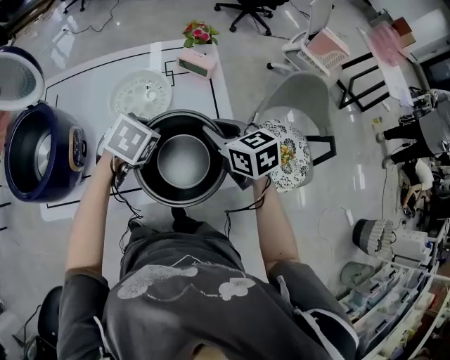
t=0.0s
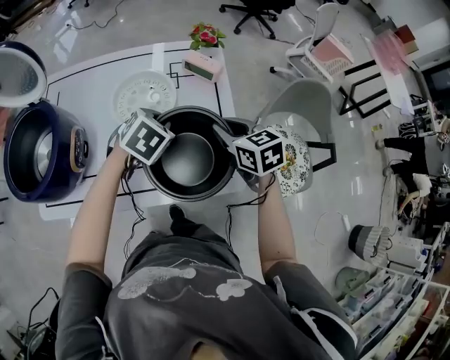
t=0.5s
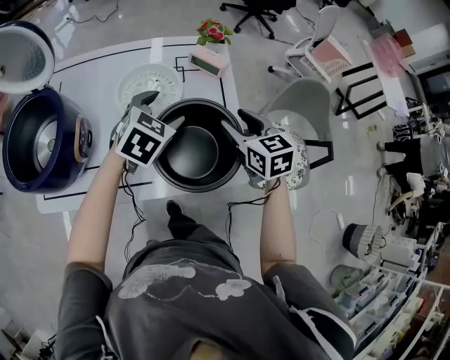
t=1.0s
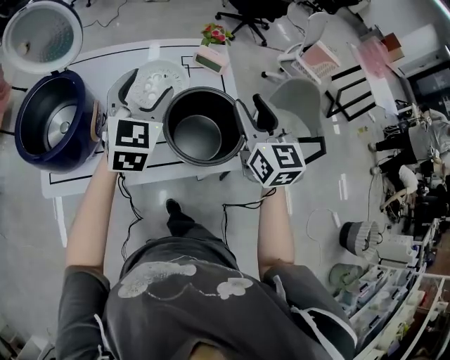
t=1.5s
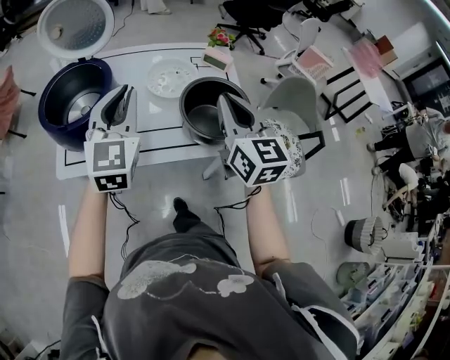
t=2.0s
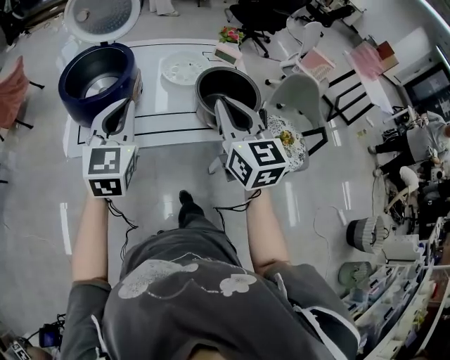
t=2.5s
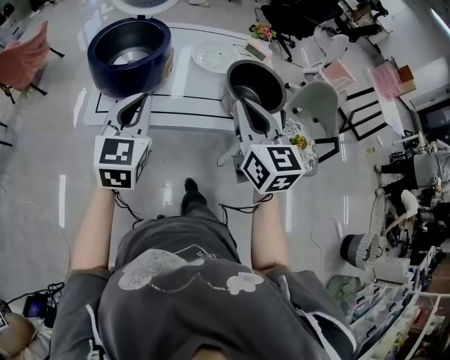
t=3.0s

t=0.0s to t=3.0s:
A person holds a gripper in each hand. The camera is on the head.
t=0.0s to t=1.5s: The right gripper goes approximately 15 cm upward, rotates some 40 degrees, and opens its fingers; the left gripper goes some 20 cm upward and to the left, tips its fingers upward by about 50 degrees, and opens up.
t=1.5s to t=3.0s: The right gripper heads to the left and backward, covering some 30 cm, and closes, while the left gripper shifts roughly 30 cm backward and to the left, and closes its fingers.

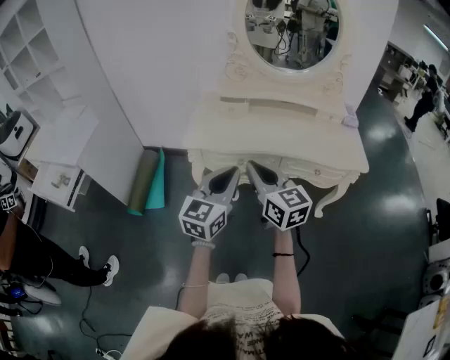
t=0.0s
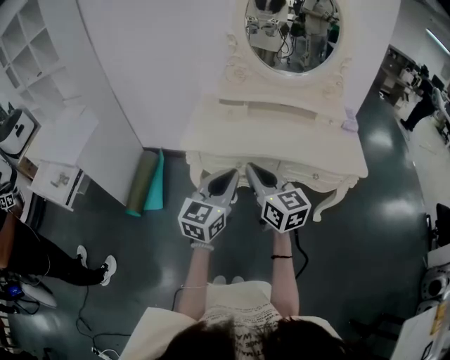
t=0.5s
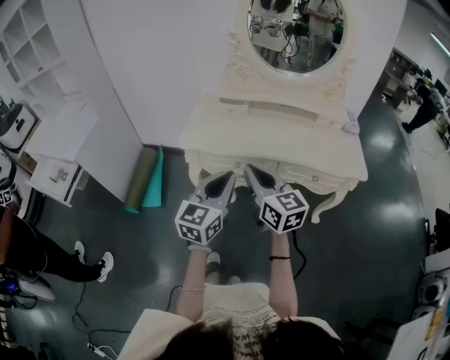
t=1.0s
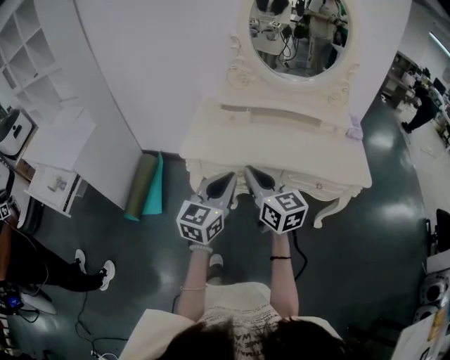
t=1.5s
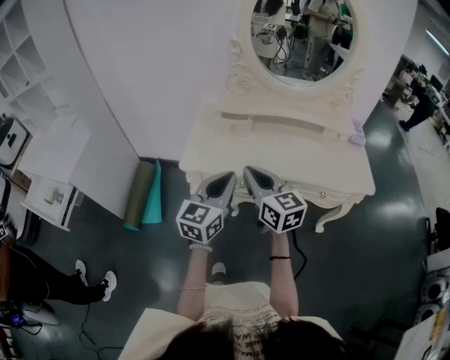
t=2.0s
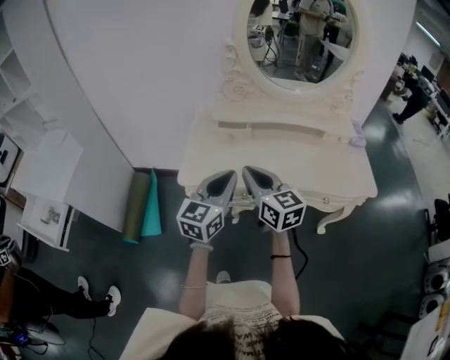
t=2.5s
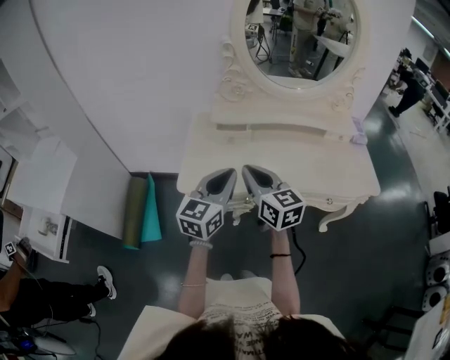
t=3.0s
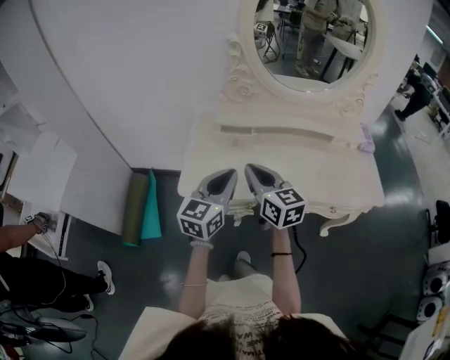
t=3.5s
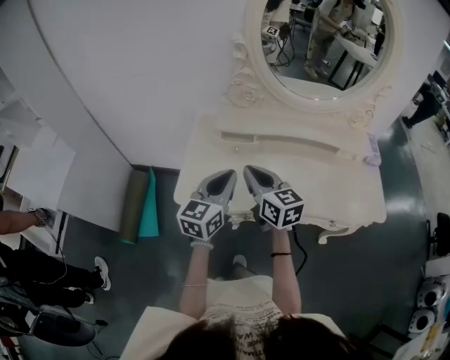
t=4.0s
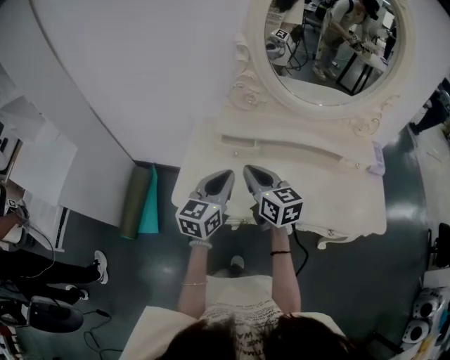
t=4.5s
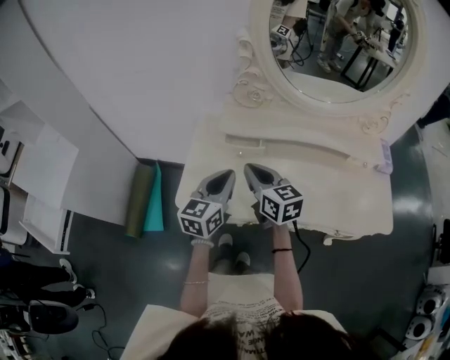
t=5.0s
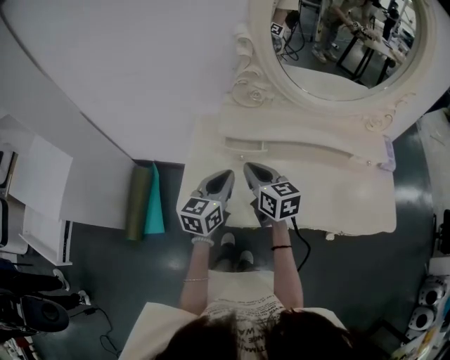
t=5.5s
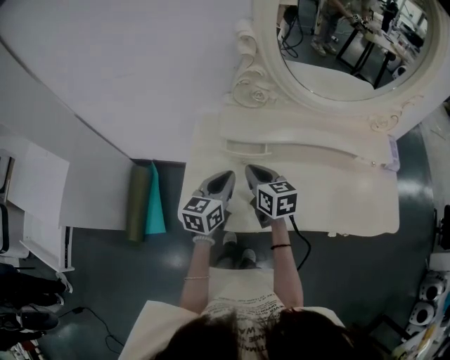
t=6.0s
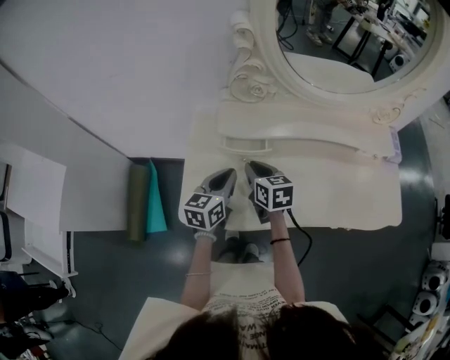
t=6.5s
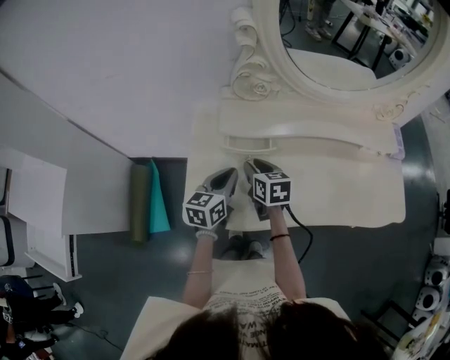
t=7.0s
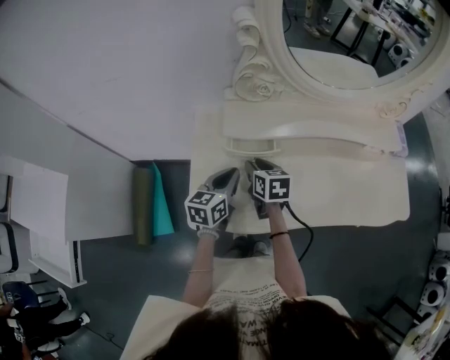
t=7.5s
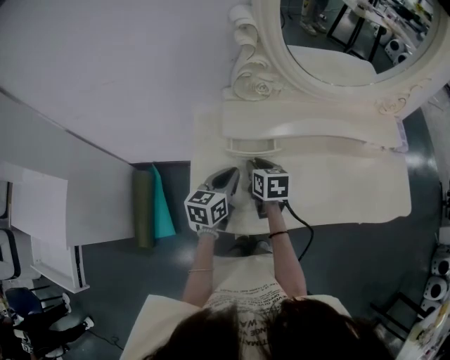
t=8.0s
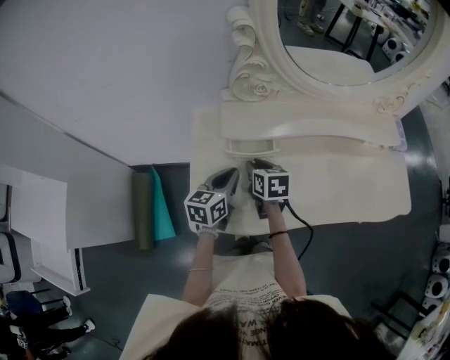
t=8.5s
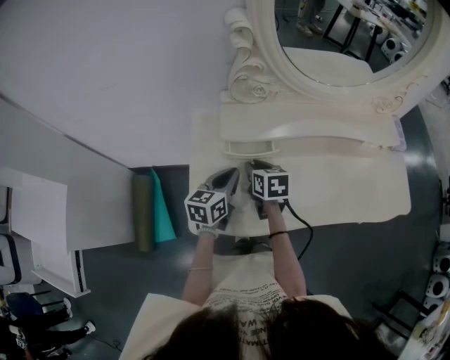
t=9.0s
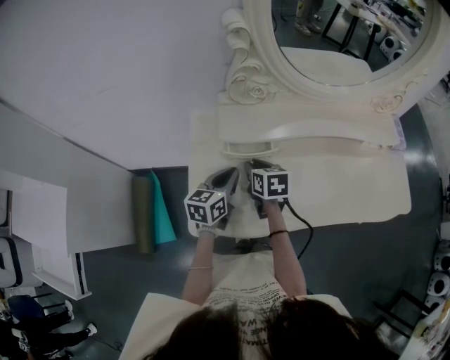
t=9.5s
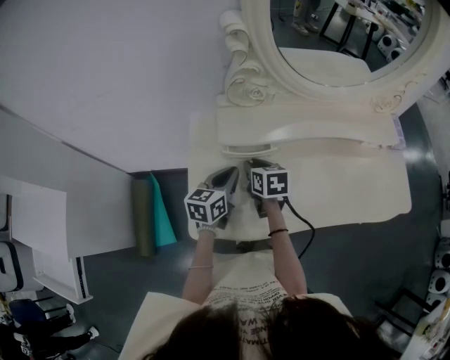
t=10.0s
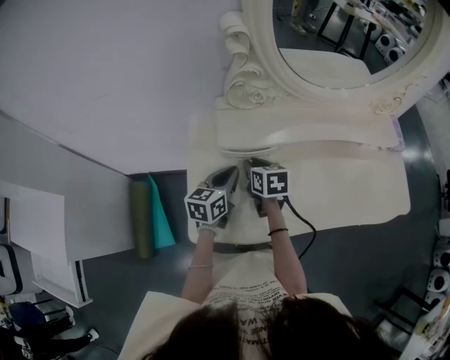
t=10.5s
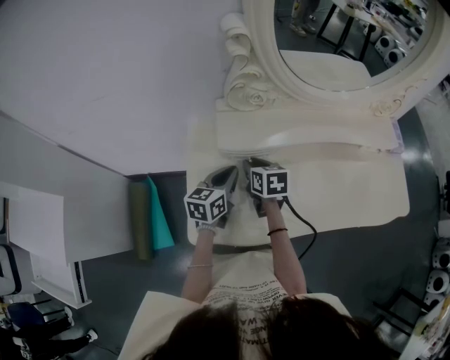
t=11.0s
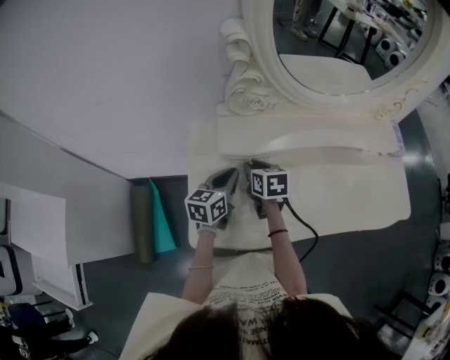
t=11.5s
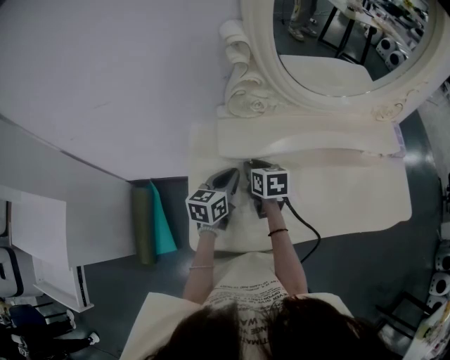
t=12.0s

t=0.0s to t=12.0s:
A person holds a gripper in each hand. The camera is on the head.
t=0.0s to t=2.0s: Both grippers move forward, about 10 cm.
t=2.0s to t=4.0s: Both grippers travel together forward, approximately 20 cm.
t=4.0s to t=6.0s: Both grippers travel together forward and downward, about 15 cm.
t=6.0s to t=8.0s: The two grippers go some 5 cm downward. The right gripper opens its fingers.
t=8.0s to t=12.0s: The grippers make only small movements.

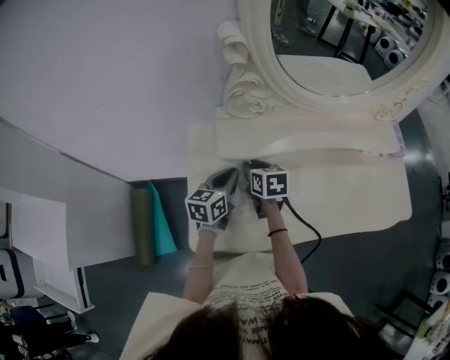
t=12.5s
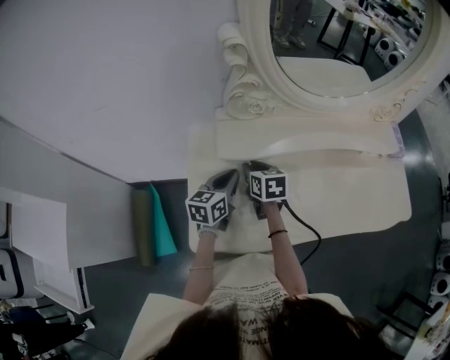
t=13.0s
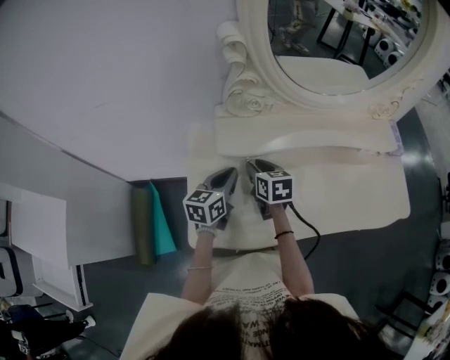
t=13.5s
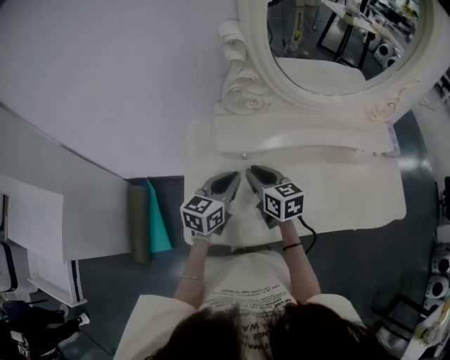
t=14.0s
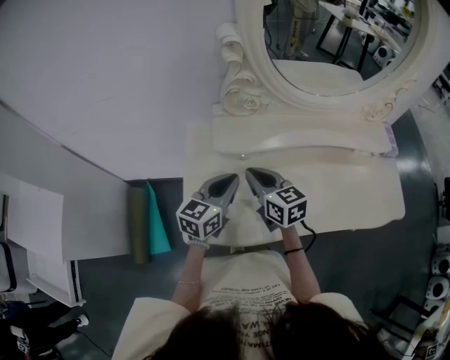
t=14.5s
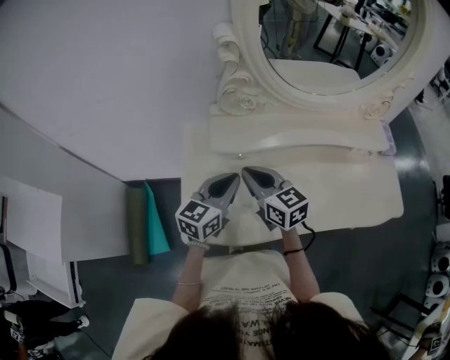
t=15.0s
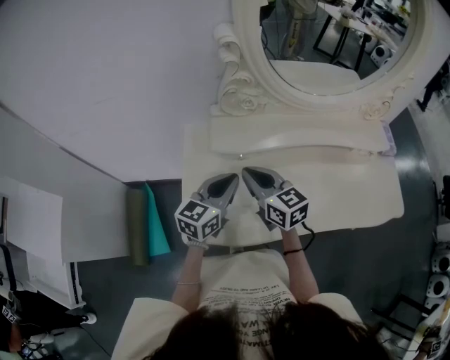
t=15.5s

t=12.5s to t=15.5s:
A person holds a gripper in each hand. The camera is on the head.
t=12.5s to t=14.0s: The right gripper moves upward and backward, some 10 cm; the left gripper ends up about 5 cm from where it was.
t=14.0s to t=15.5s: The right gripper moves upward, approximately 5 cm.

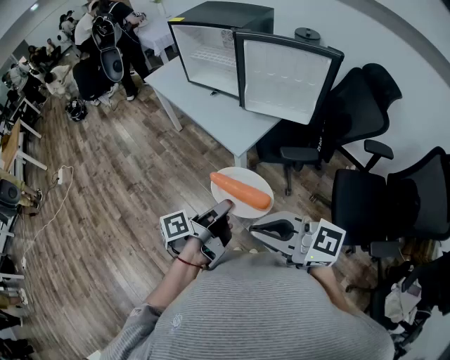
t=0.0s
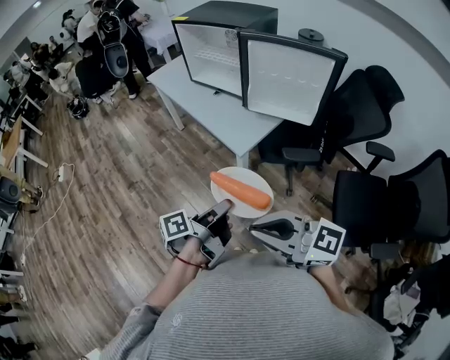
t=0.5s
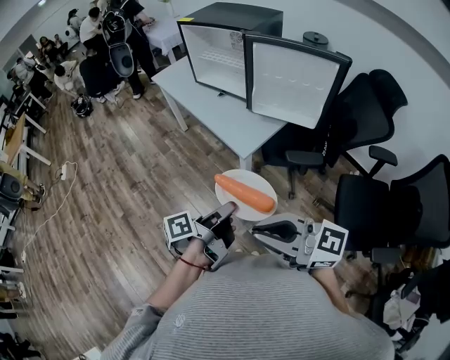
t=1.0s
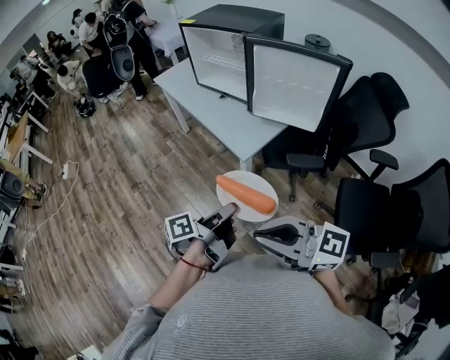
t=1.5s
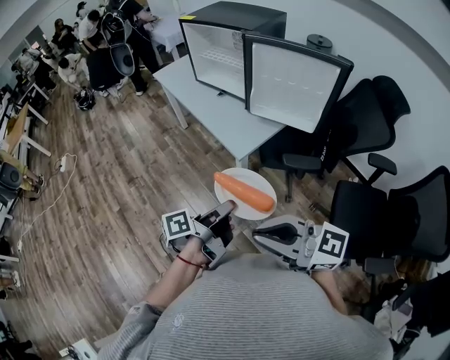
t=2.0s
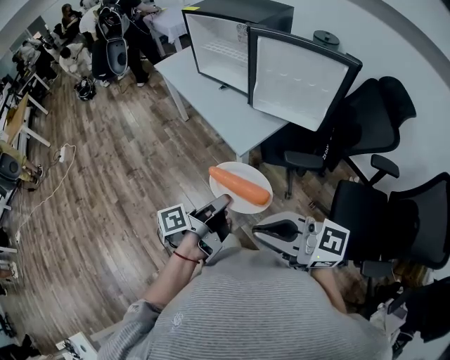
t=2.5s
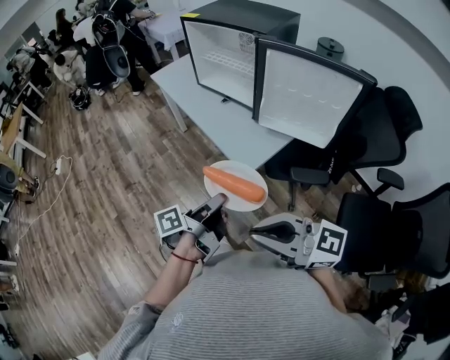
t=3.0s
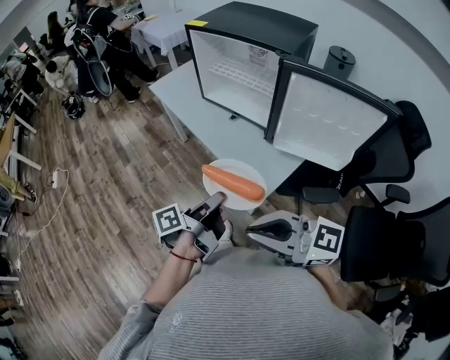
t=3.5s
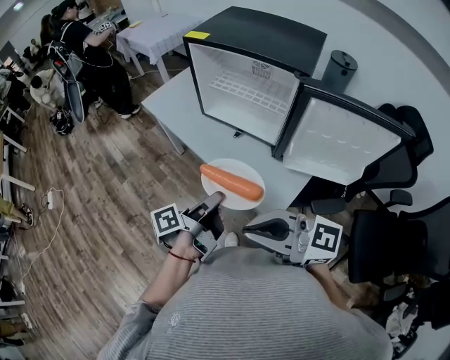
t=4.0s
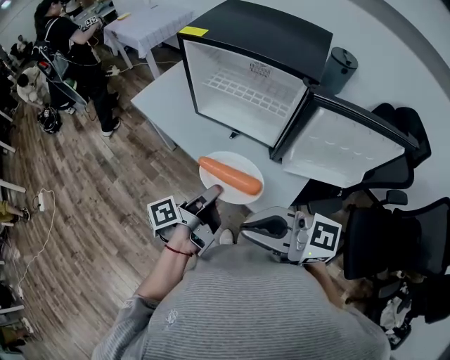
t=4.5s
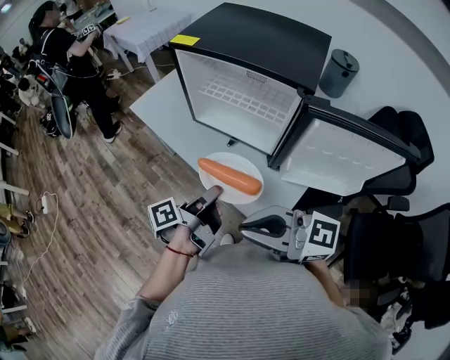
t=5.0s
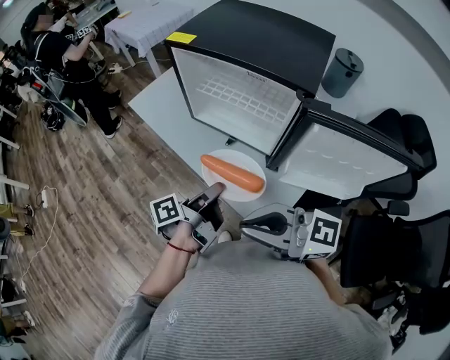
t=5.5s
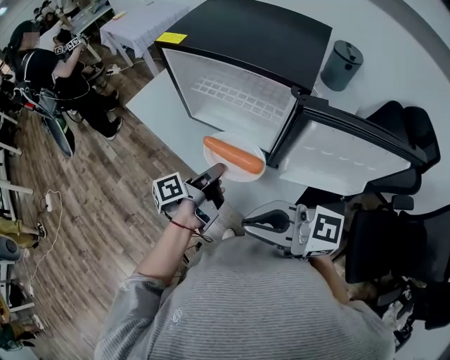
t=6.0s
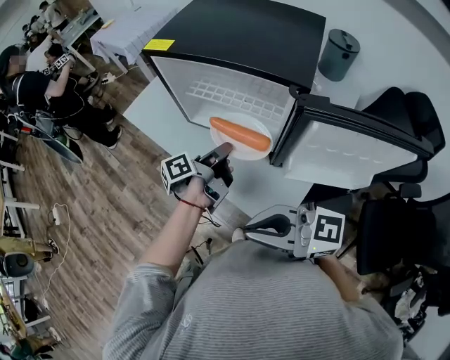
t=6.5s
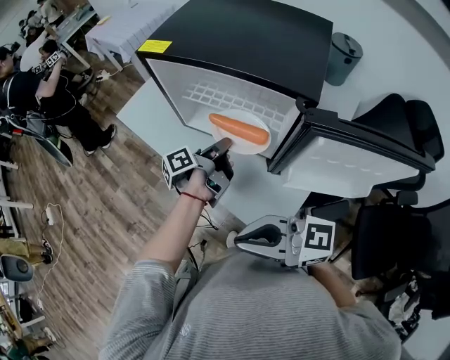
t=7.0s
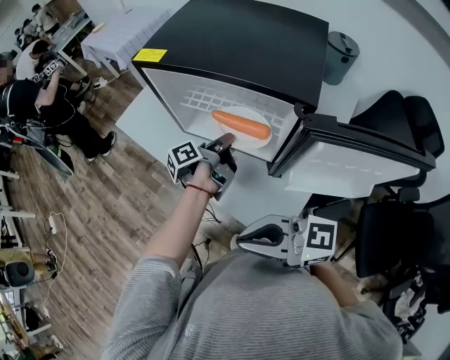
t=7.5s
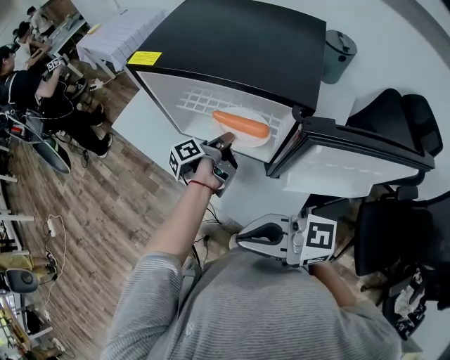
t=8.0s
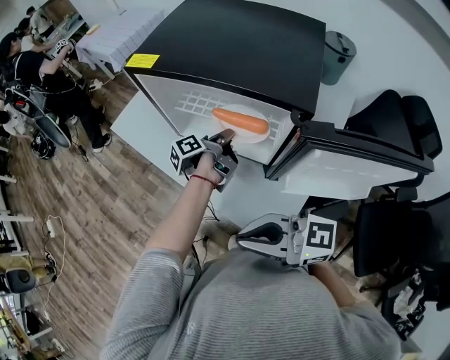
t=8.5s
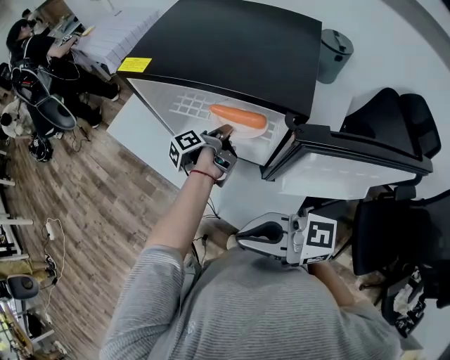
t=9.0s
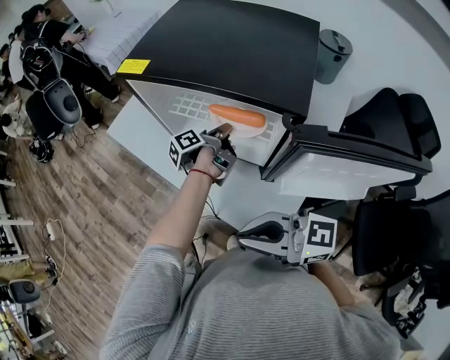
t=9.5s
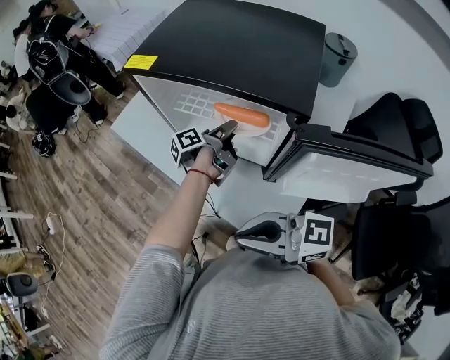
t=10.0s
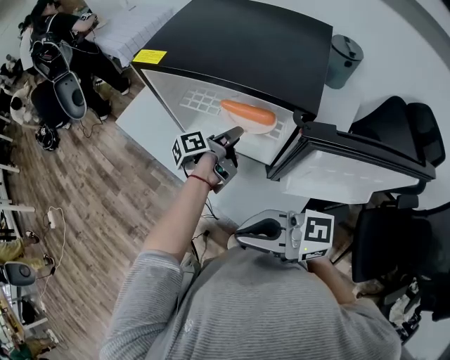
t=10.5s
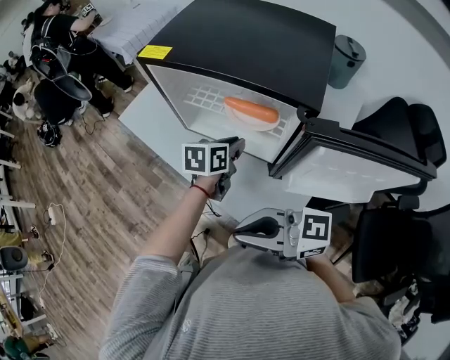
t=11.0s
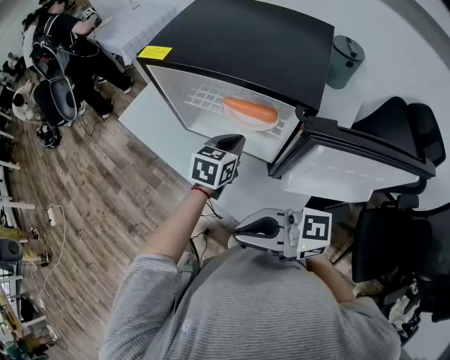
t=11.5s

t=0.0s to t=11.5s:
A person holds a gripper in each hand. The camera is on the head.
t=2.0s to t=4.0s: The right gripper changes place by about 40 cm.
t=4.0s to t=6.0s: The right gripper ends up some 10 cm from where it was.
t=6.0s to t=7.5s: The right gripper ends up about 5 cm from where it was.
